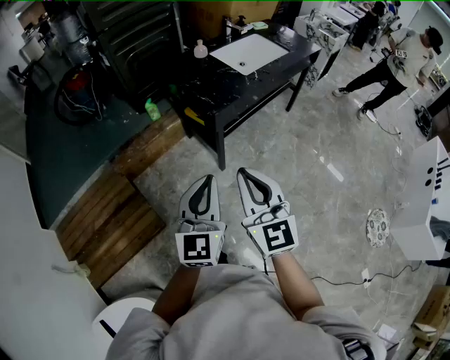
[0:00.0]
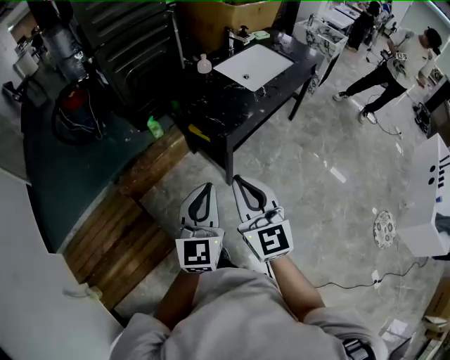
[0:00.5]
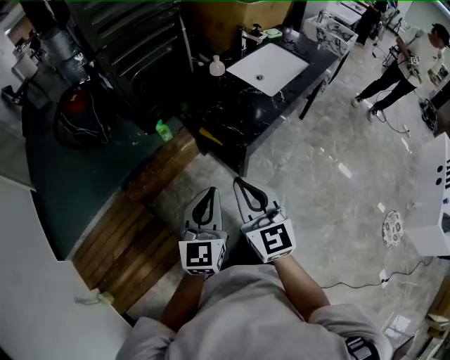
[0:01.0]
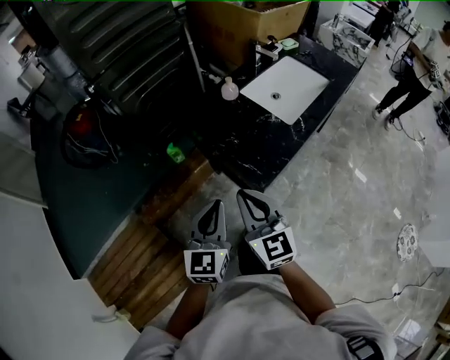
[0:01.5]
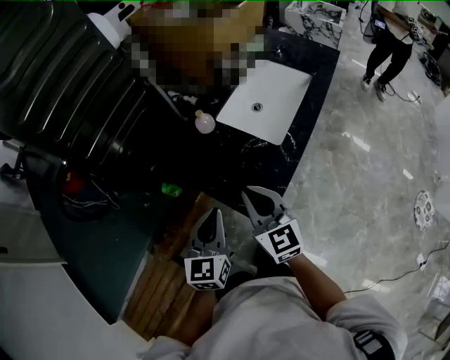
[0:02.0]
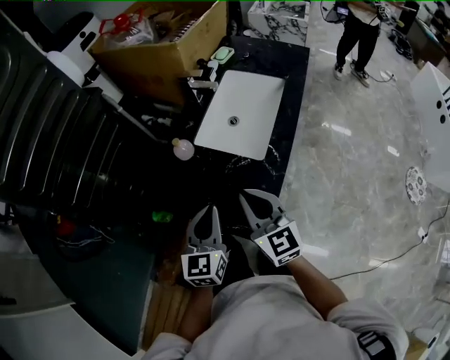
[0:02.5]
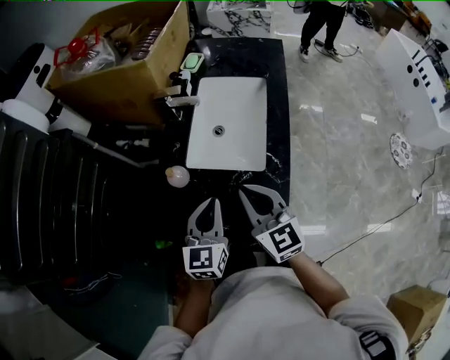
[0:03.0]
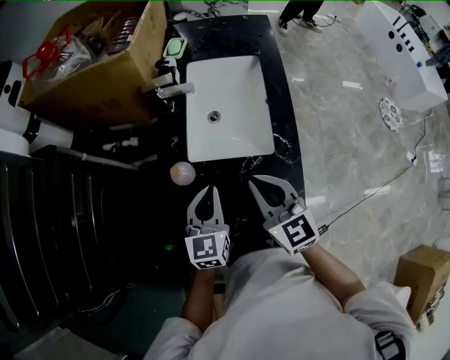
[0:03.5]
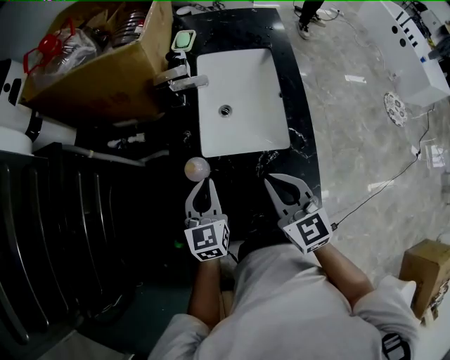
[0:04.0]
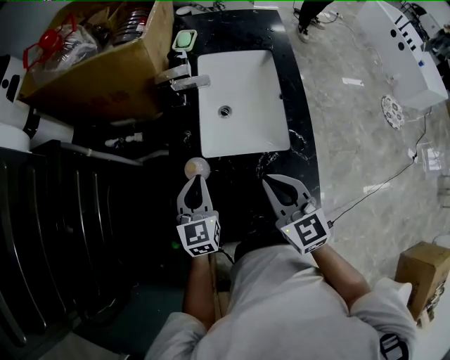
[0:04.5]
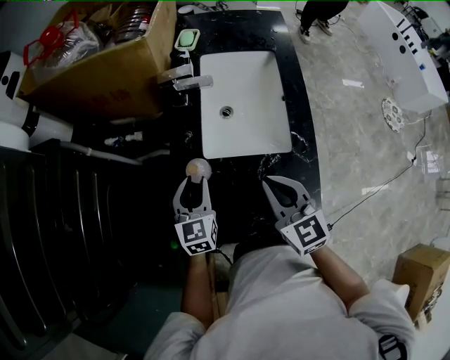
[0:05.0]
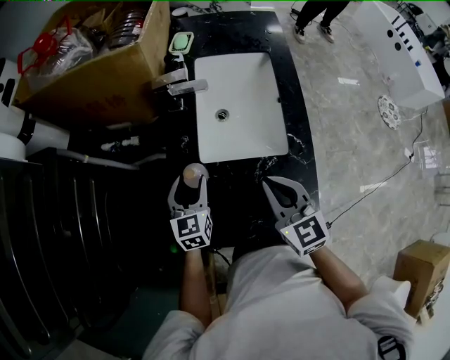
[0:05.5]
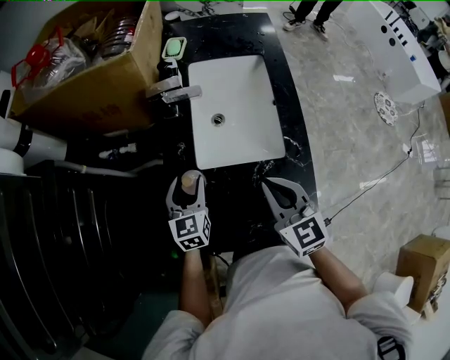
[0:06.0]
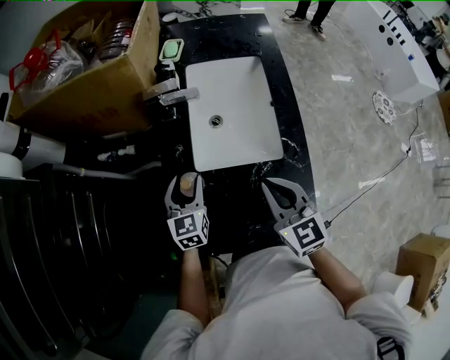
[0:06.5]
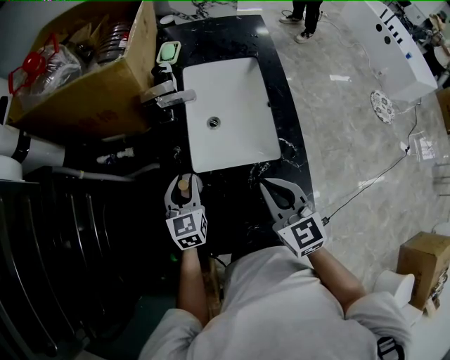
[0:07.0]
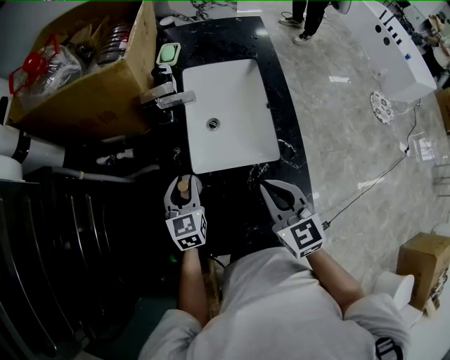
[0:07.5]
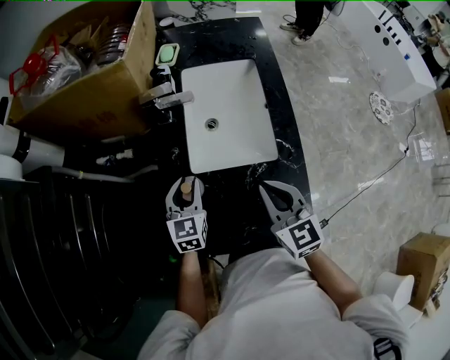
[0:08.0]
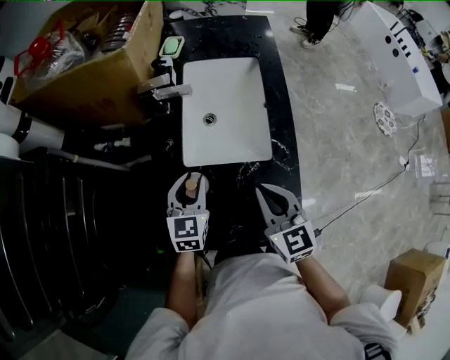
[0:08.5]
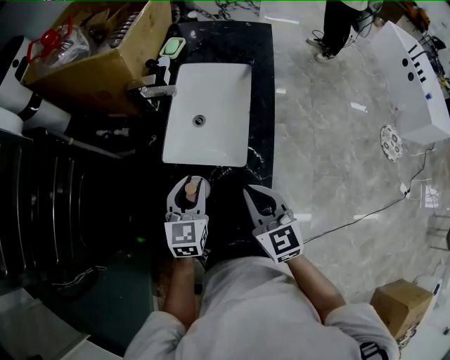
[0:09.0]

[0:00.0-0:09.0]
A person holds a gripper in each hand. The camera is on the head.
0:00.0 to 0:02.0: Both grippers are carried forward, some 50 cm. The left gripper turns by roughly 20 degrees.
0:02.0 to 0:04.5: The left gripper changes place by approximately 35 cm, and turns by approximately 30 degrees. The right gripper ends up about 20 cm from where it was, and swivels some 30 degrees.
0:04.5 to 0:07.0: The left gripper travels forward by about 5 cm, and opens up.
0:07.0 to 0:09.0: The left gripper goes approximately 15 cm to the right and backward, while the right gripper goes approximately 10 cm to the right.

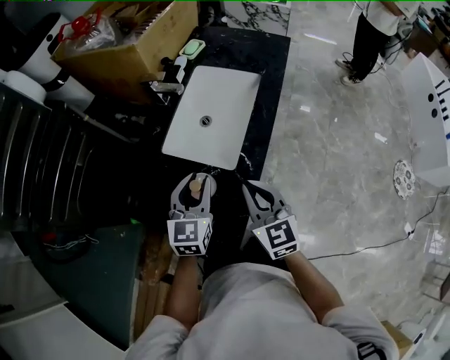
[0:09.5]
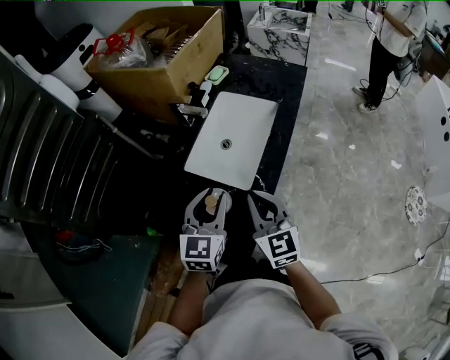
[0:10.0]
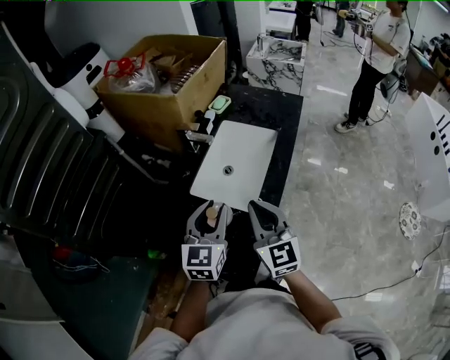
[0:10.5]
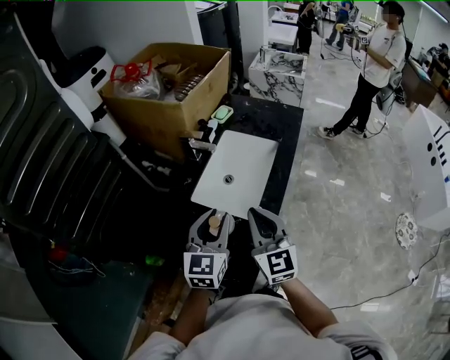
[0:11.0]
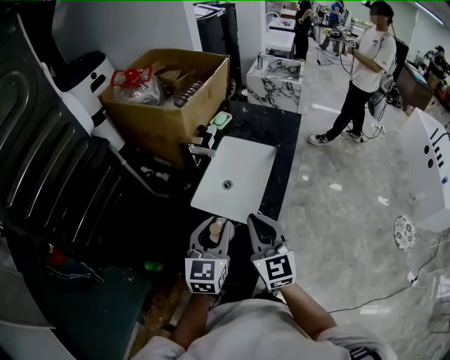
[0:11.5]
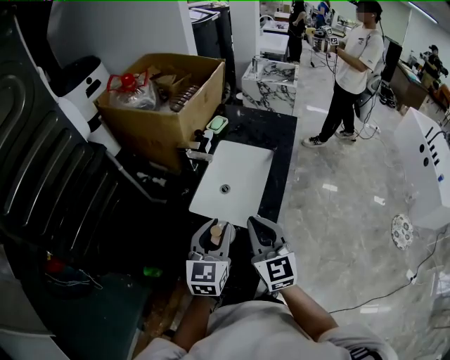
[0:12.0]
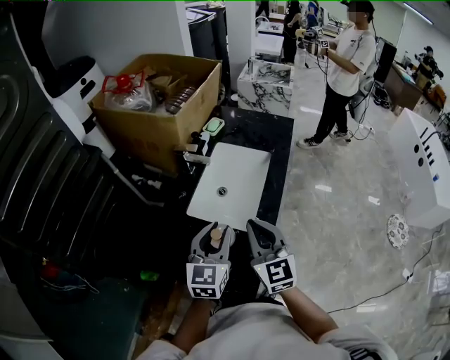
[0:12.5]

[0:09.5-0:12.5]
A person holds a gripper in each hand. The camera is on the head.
0:09.5 to 0:11.0: Both grippers travel together upward, roughly 10 cm.
0:11.0 to 0:12.5: The grippers make only small movements.

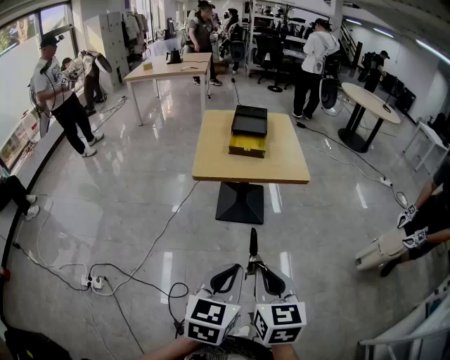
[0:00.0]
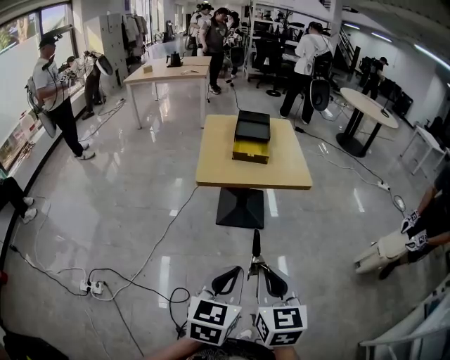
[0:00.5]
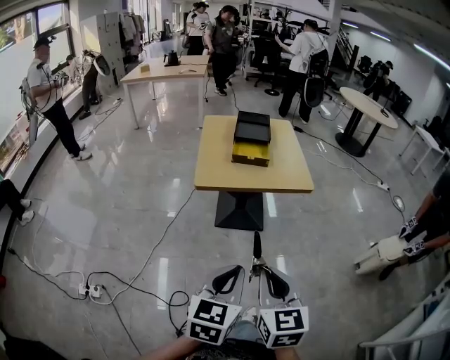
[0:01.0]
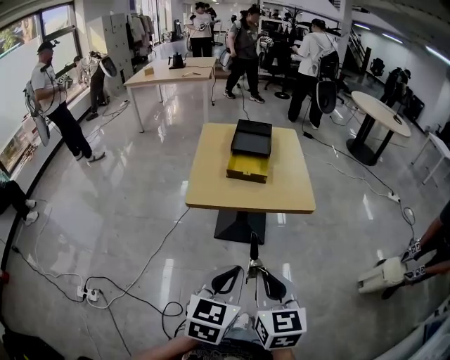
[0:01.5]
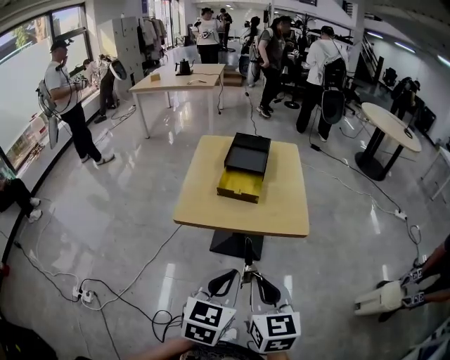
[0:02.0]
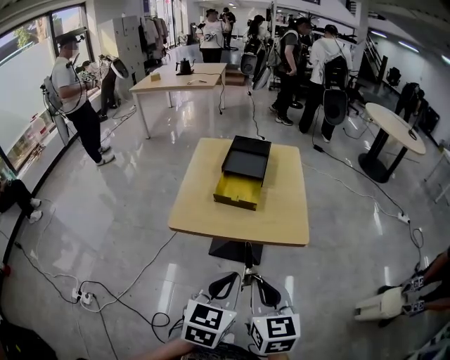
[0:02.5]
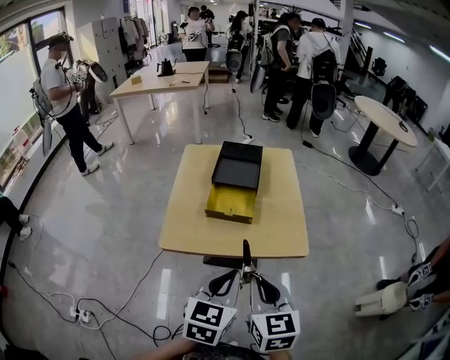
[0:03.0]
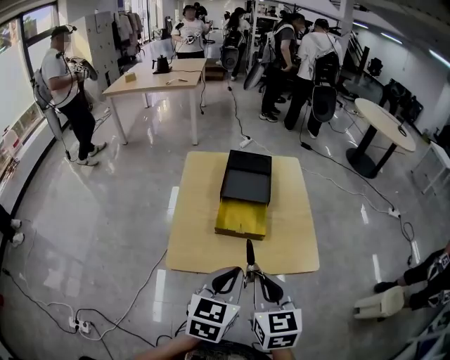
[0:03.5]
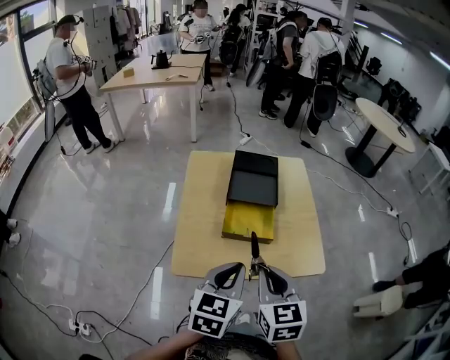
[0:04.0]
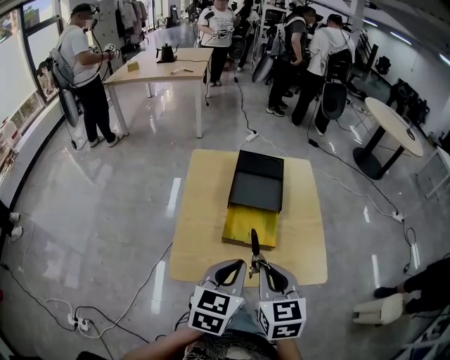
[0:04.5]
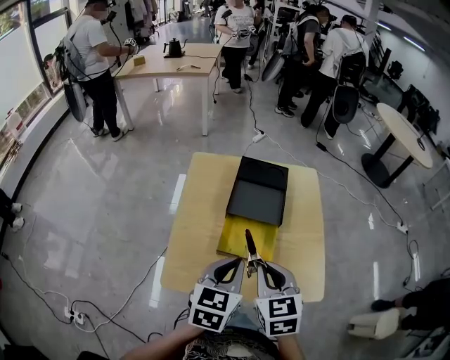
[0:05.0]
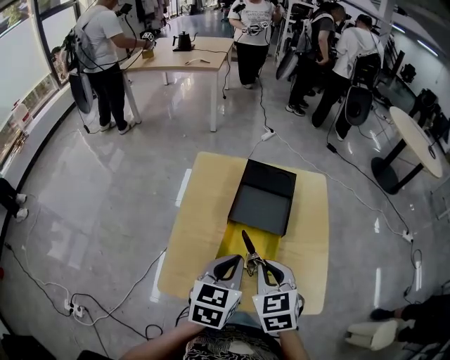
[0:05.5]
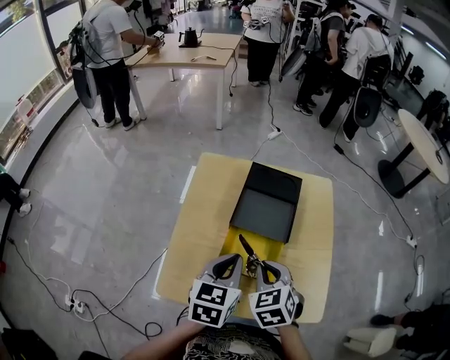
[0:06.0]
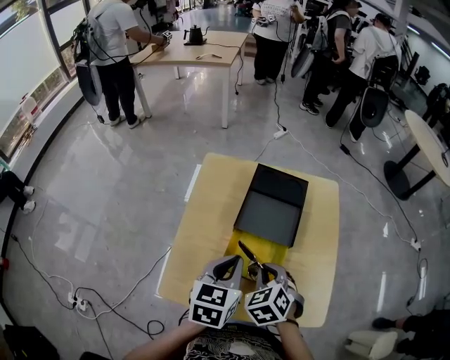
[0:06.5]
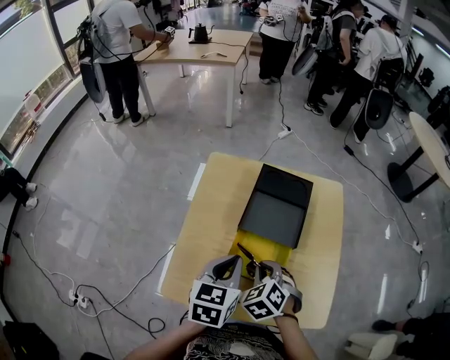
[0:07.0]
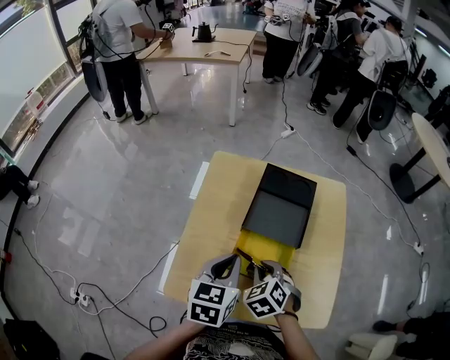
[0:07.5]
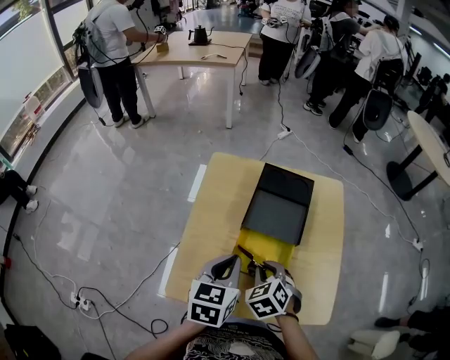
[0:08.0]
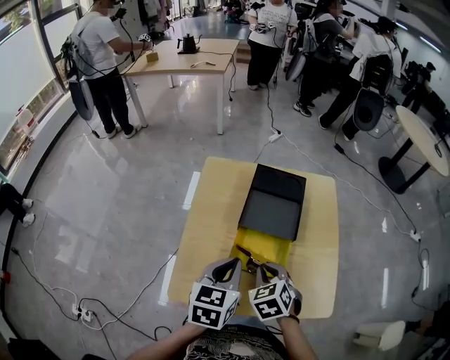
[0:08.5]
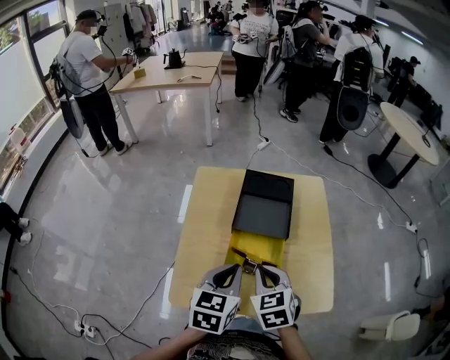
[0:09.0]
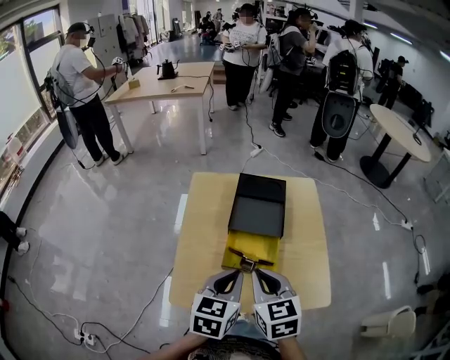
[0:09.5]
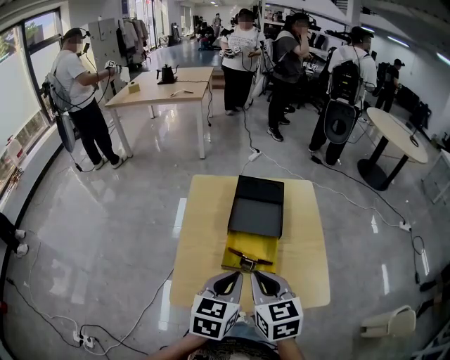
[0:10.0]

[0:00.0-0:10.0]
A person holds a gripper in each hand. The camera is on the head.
0:00.0 to 0:02.0: The two grippers go about 35 cm forward.
0:02.0 to 0:04.0: The two grippers travel together, forward and to the left, roughly 40 cm.
0:04.0 to 0:06.0: The right gripper moves forward and downward, about 35 cm, and swivels some 30 degrees, while the left gripper is displaced forward by approximately 30 cm.
0:06.0 to 0:08.0: The left gripper goes about 5 cm to the left; the right gripper is displaced downward and to the left by about 10 cm.
0:08.0 to 0:10.0: Both grippers travel together backward and upward, approximately 20 cm. The right gripper rotates about 40 degrees.

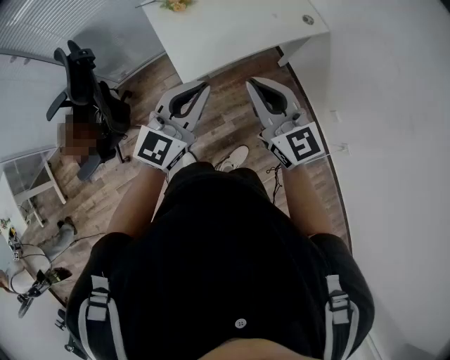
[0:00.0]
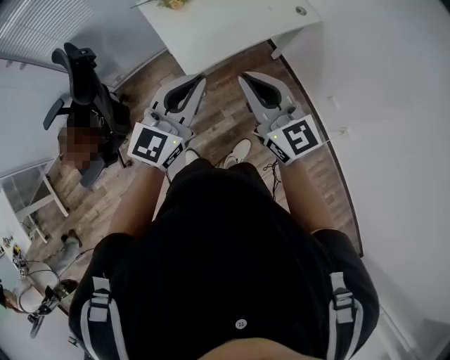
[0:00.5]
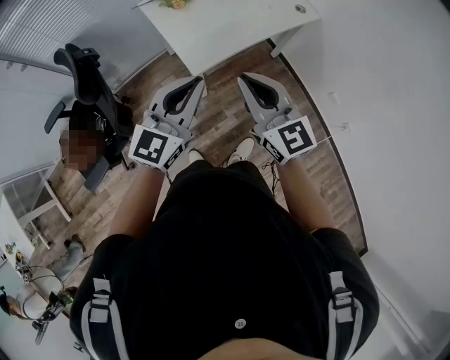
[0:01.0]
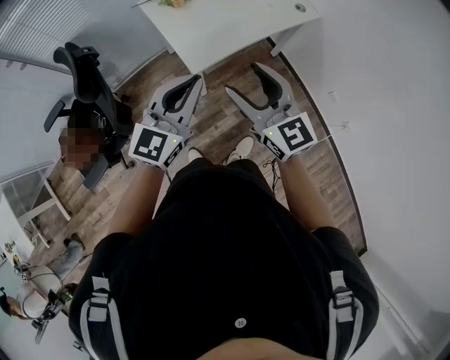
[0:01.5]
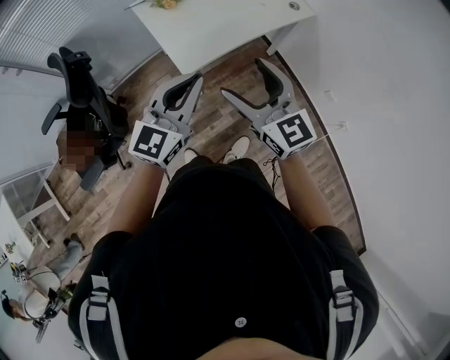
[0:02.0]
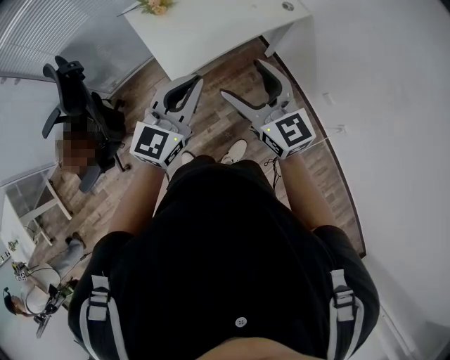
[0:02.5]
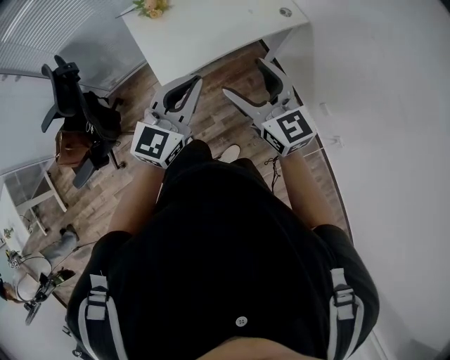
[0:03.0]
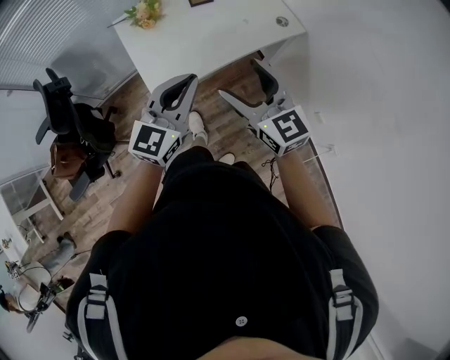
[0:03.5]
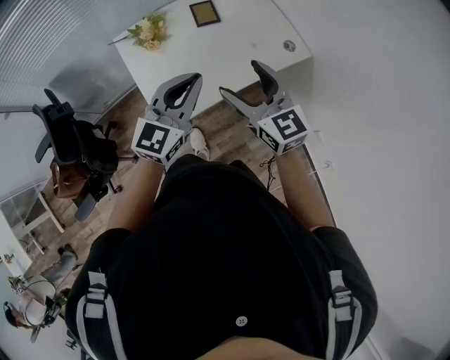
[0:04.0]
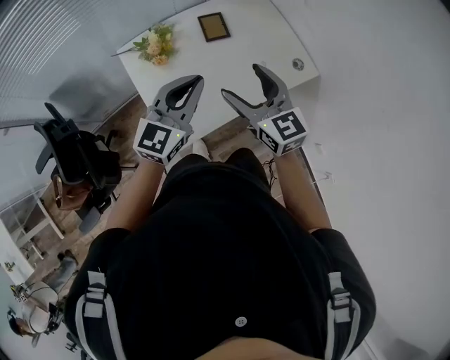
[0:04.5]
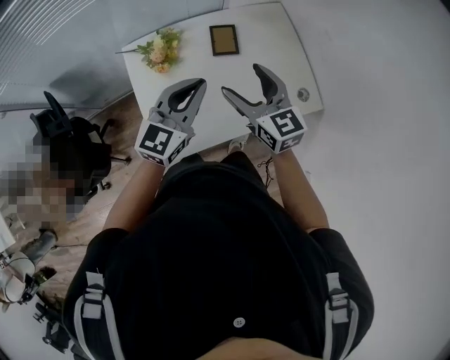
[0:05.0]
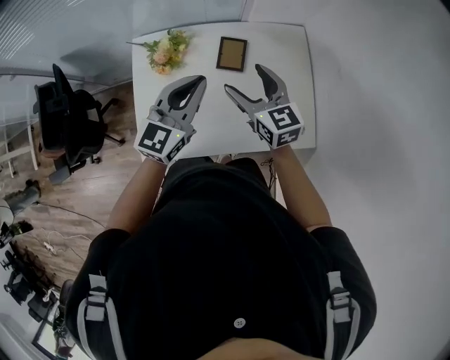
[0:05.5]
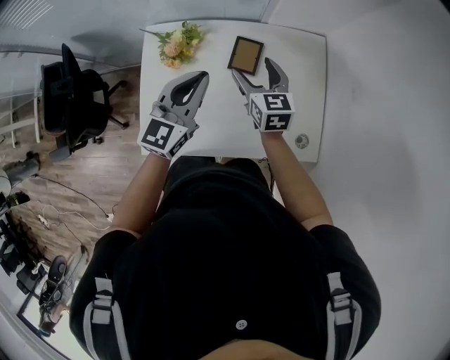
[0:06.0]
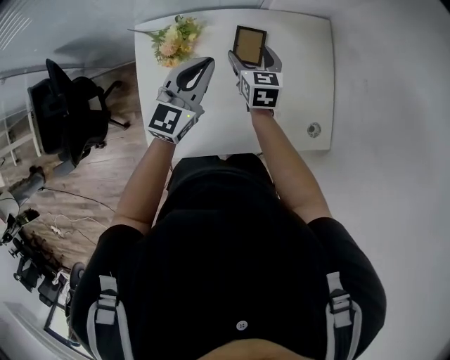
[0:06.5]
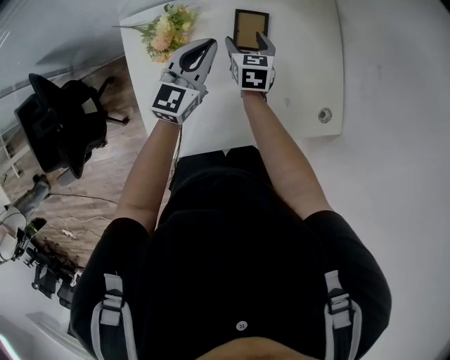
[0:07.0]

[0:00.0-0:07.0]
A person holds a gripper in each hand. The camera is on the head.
0:00.0 to 0:02.0: The two grippers go about 5 cm to the left. The right gripper opens up.
0:02.0 to 0:03.5: The grippers both shift forward and to the right by some 20 cm.
0:03.5 to 0:05.0: The grippers both shift forward by about 35 cm.
0:05.0 to 0:07.0: The left gripper is displaced forward and downward by approximately 25 cm, while the right gripper travels downward and forward by some 35 cm, and turns by some 30 degrees.
